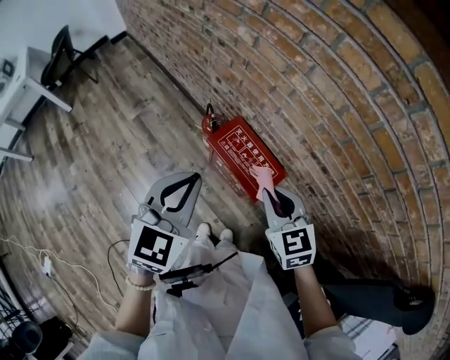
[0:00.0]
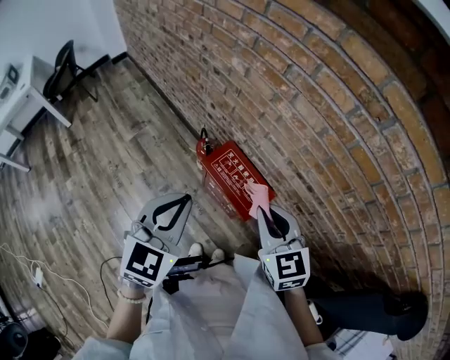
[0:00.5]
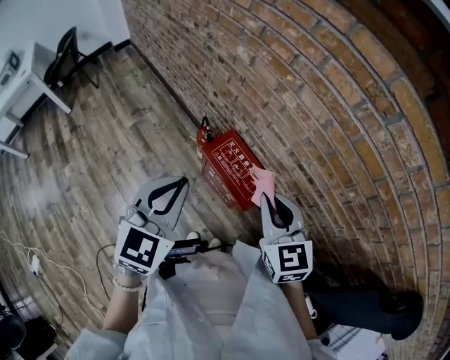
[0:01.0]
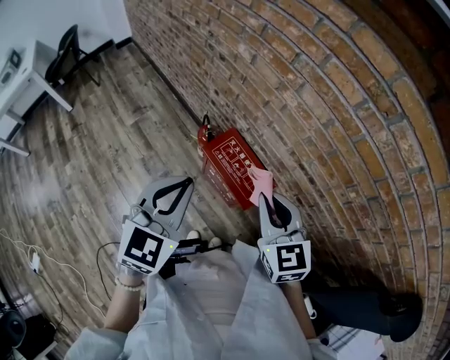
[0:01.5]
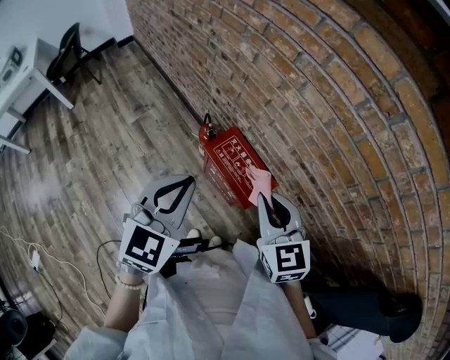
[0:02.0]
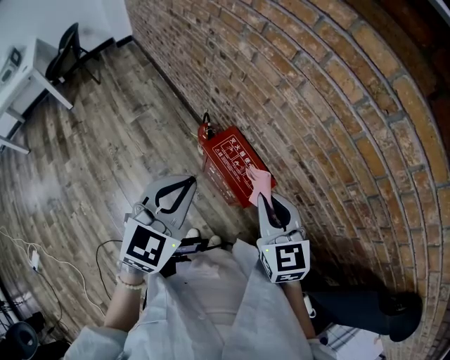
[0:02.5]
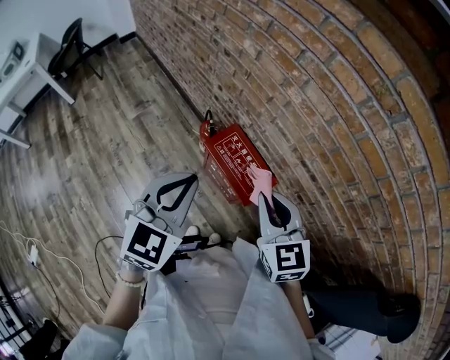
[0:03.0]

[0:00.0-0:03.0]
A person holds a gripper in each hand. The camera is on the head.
0:00.0 to 0:01.5: The right gripper shifts approximately 10 cm upward.
0:01.5 to 0:03.0: Neither gripper changes place.

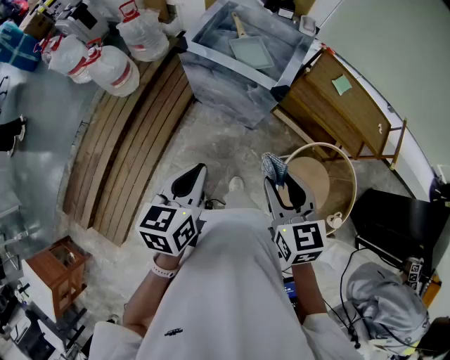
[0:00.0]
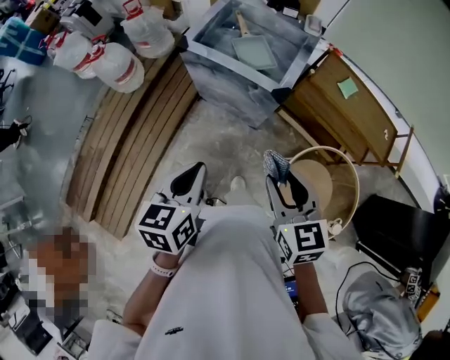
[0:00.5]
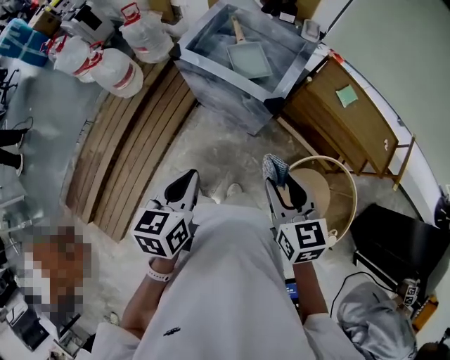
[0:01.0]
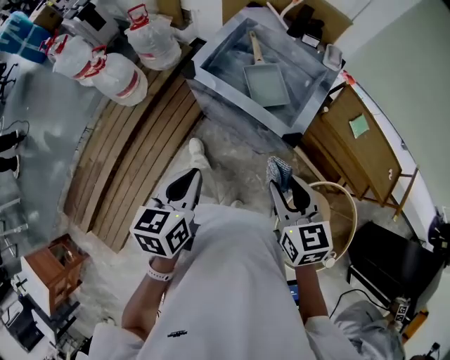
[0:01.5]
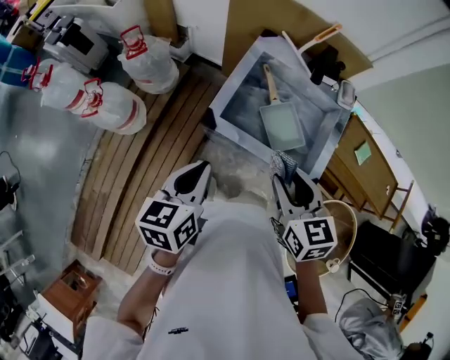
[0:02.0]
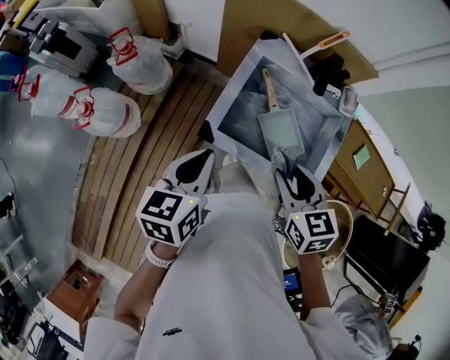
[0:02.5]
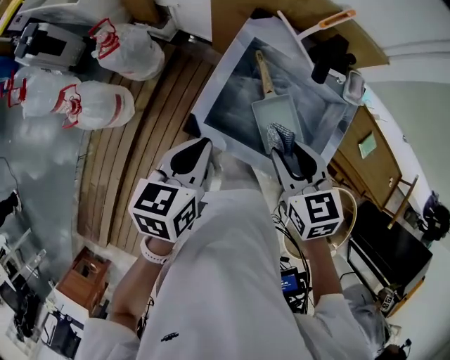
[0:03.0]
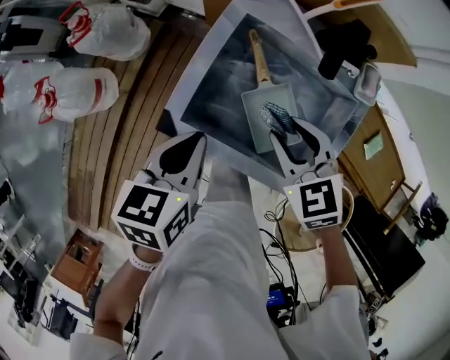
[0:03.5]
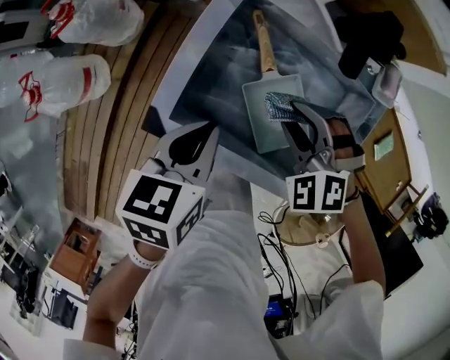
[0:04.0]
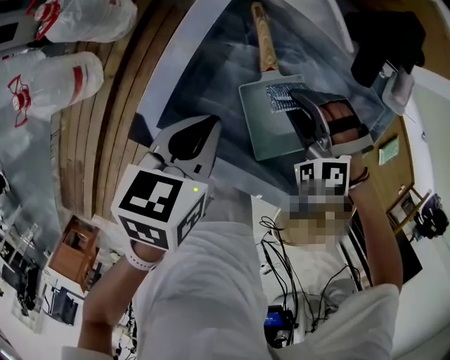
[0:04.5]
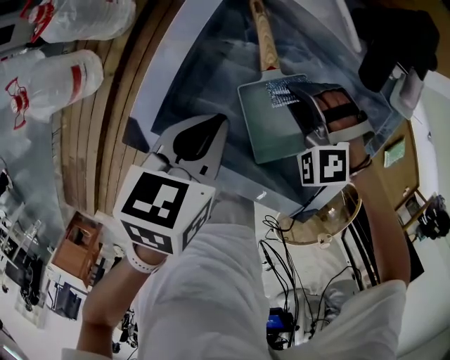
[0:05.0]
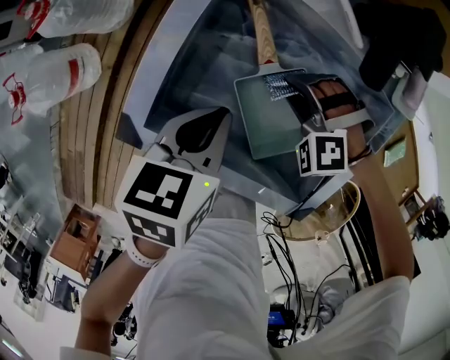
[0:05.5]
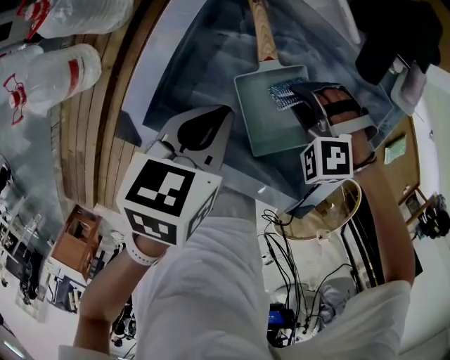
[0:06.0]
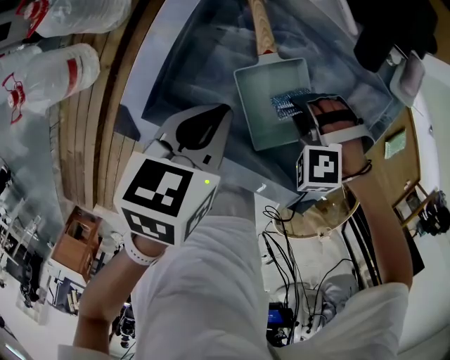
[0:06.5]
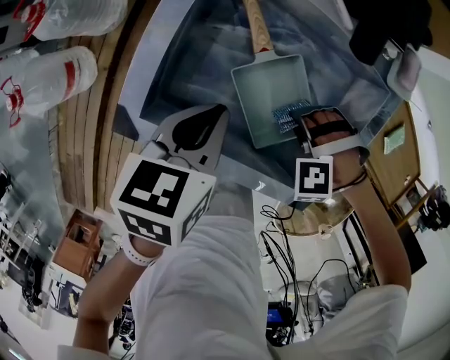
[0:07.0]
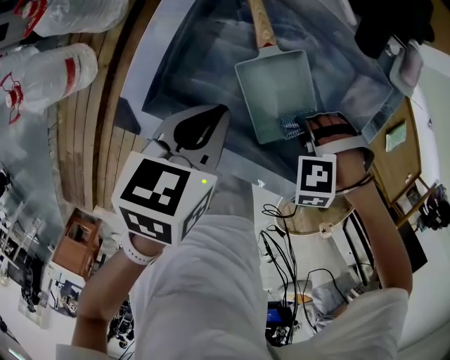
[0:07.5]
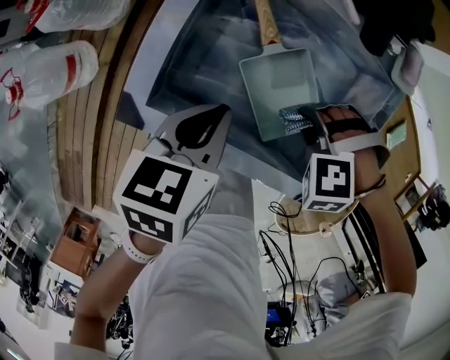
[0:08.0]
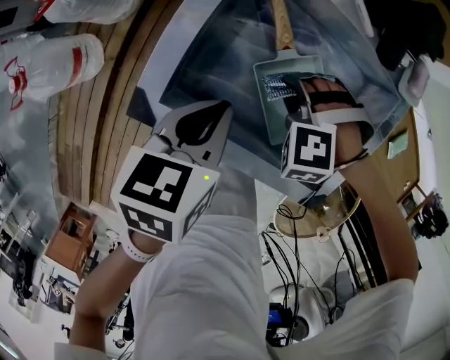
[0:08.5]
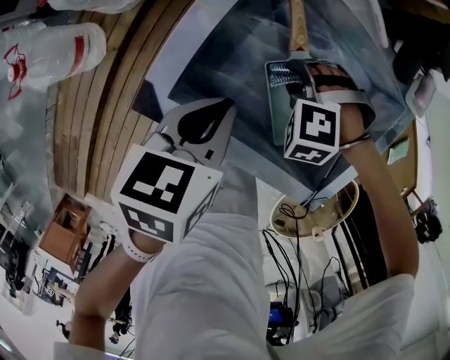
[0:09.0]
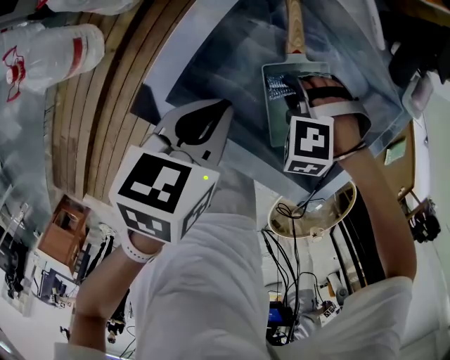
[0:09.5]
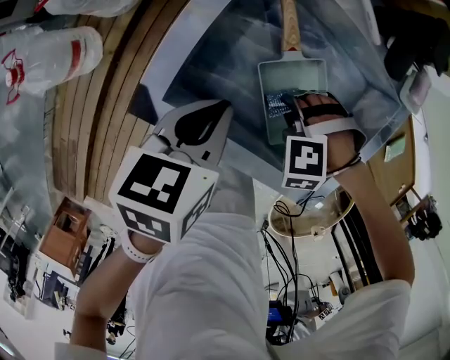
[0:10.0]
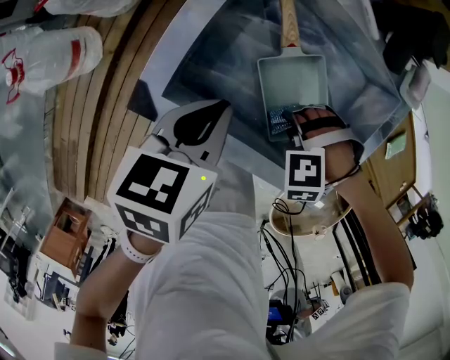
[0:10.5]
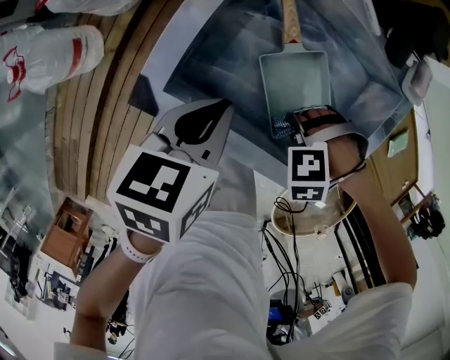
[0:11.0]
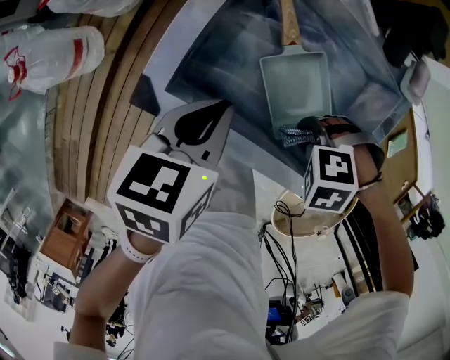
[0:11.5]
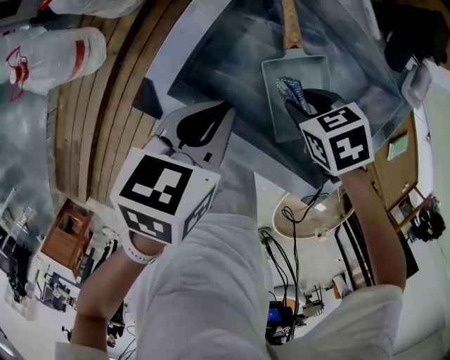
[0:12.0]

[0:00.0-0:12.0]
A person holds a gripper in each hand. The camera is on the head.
0:00.0 to 0:02.0: Both grippers move forward, some 35 cm.
0:02.0 to 0:04.0: The left gripper shifts about 25 cm forward, downward and to the right. Meanwhile the right gripper goes approximately 30 cm forward and downward, and twists about 60 degrees counterclockwise, seen from behind.
0:04.0 to 0:06.0: The left gripper travels downward by approximately 5 cm. The right gripper goes about 15 cm downward, and turns by approximately 20 degrees.
0:06.0 to 0:08.0: The right gripper ends up roughly 10 cm from where it was.
0:10.0 to 0:12.0: The right gripper rotates around the line of its fingers by roughly 70 degrees, clockwise from behind.

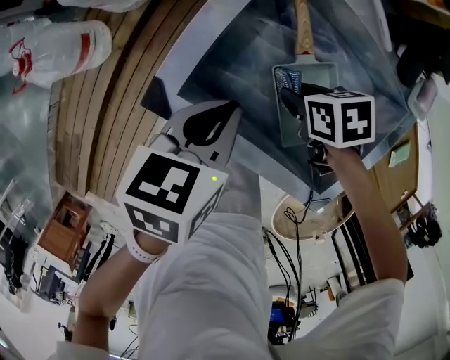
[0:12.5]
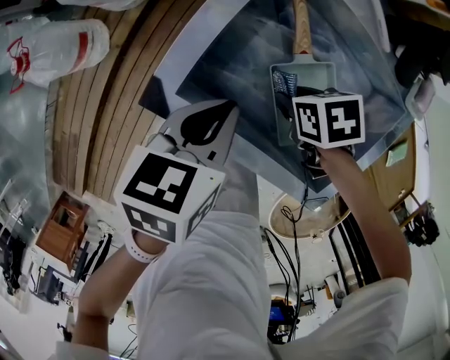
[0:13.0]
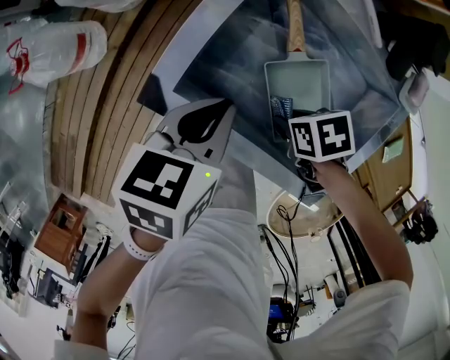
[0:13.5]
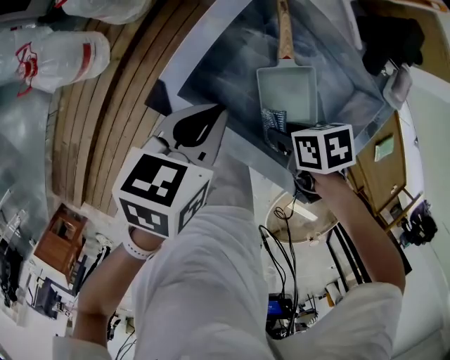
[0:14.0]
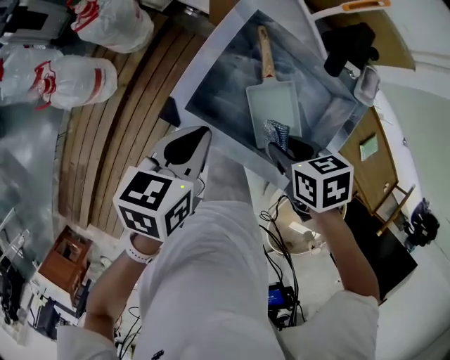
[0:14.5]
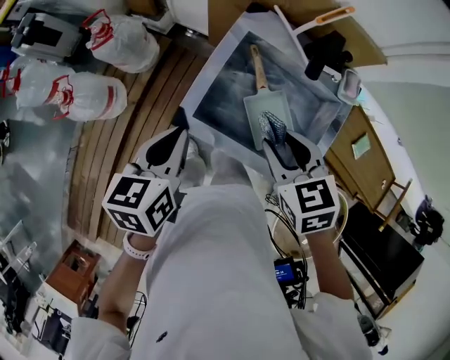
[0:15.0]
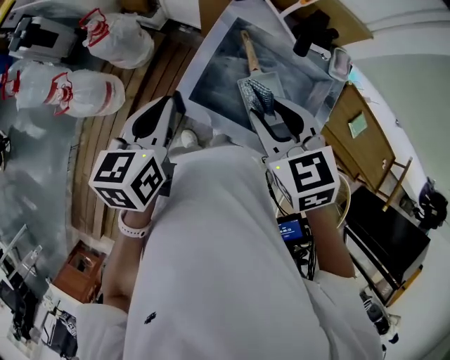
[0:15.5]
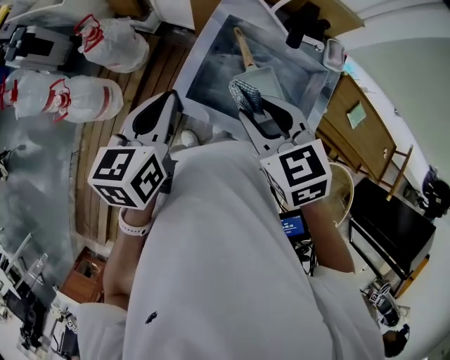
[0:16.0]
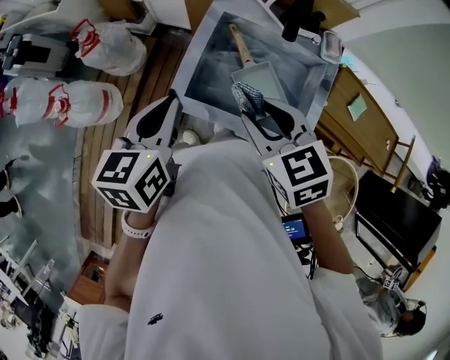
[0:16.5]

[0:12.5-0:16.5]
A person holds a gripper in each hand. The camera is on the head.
0:12.5 to 0:14.5: The right gripper travels upward by approximately 15 cm, while the left gripper moves upward, roughly 10 cm.
0:14.5 to 0:16.5: The grippers both shift upward by approximately 15 cm. The right gripper turns by about 40 degrees.

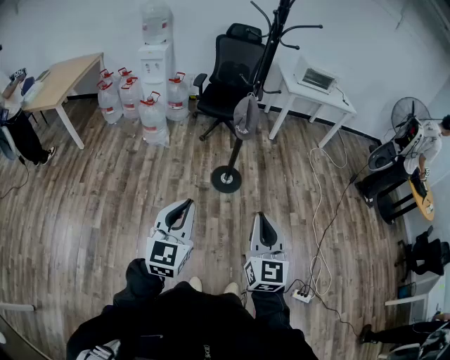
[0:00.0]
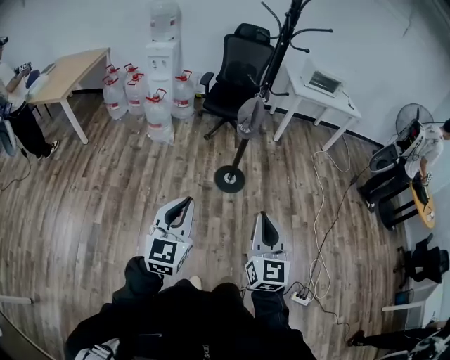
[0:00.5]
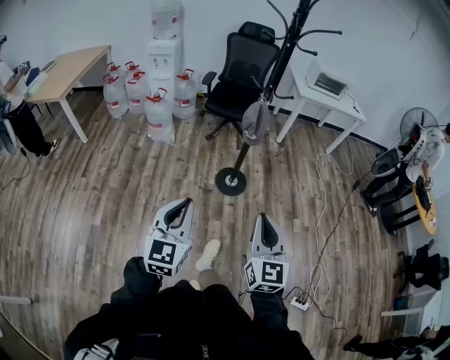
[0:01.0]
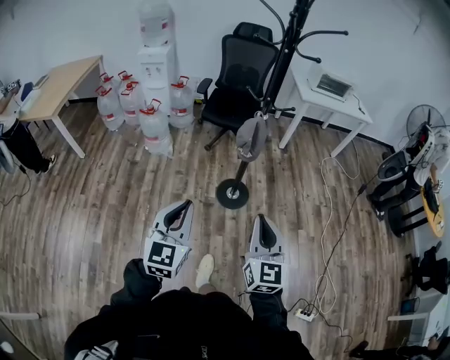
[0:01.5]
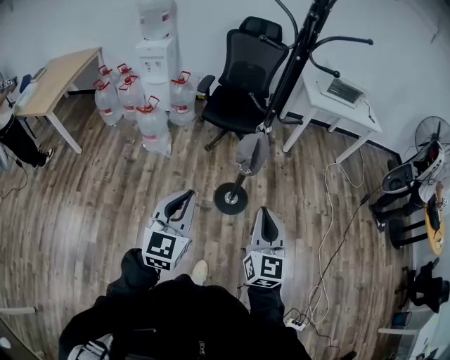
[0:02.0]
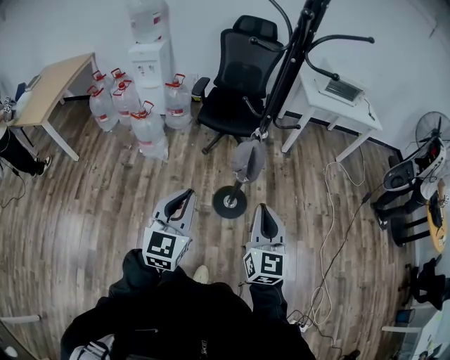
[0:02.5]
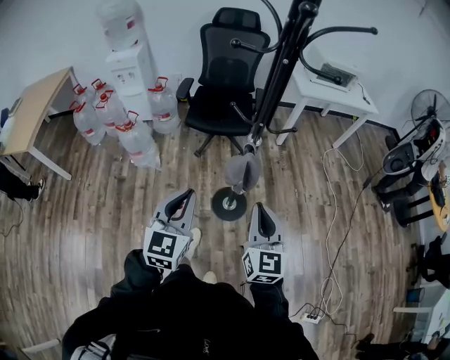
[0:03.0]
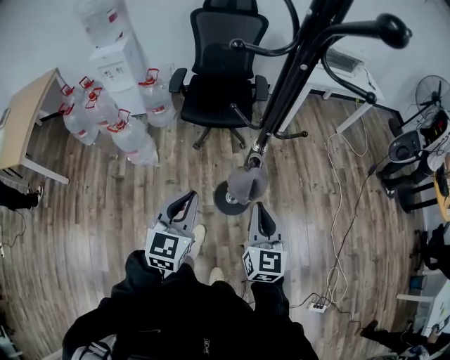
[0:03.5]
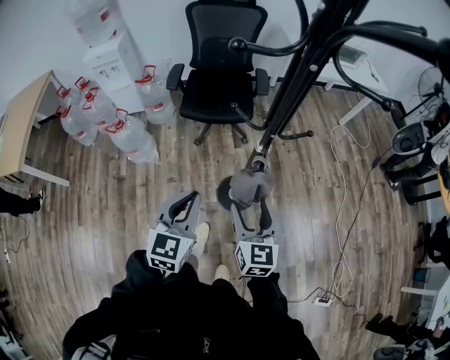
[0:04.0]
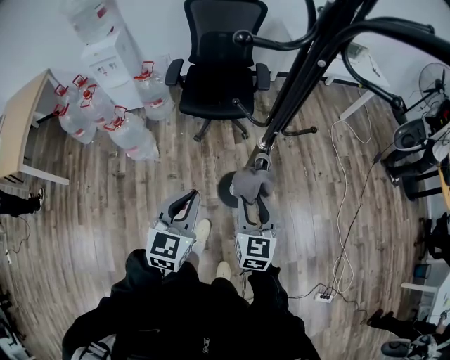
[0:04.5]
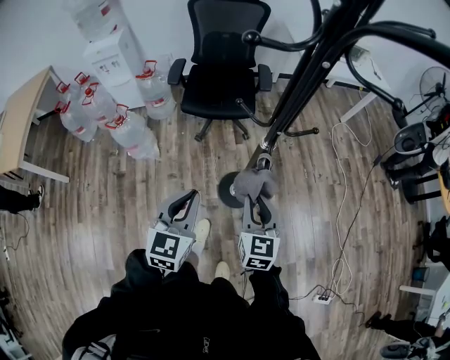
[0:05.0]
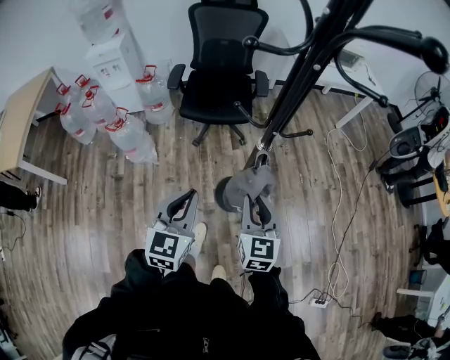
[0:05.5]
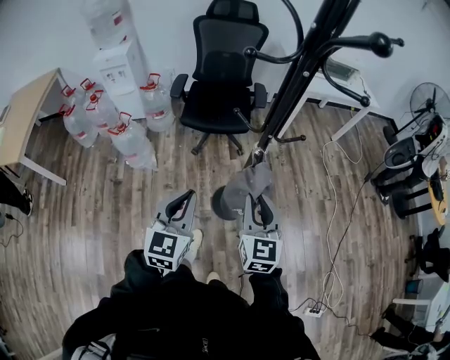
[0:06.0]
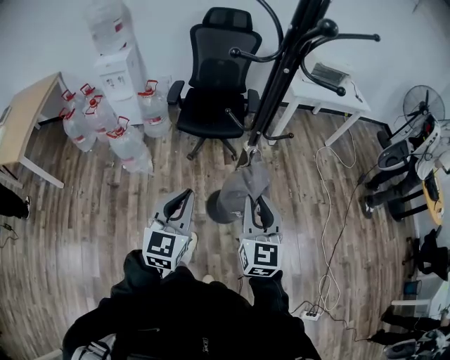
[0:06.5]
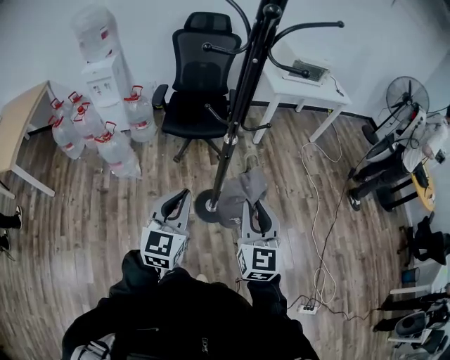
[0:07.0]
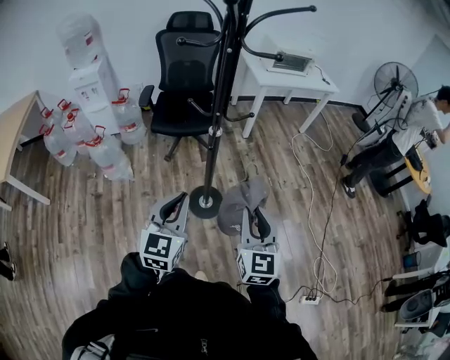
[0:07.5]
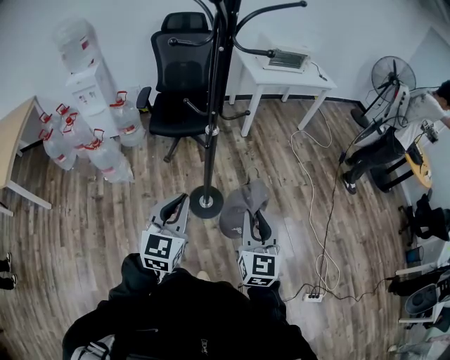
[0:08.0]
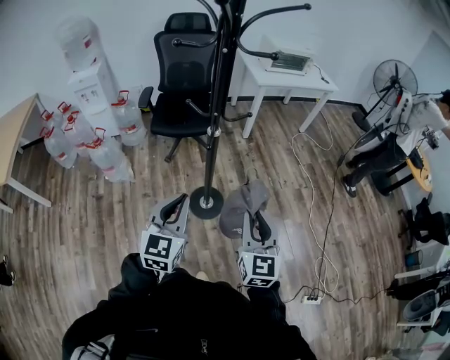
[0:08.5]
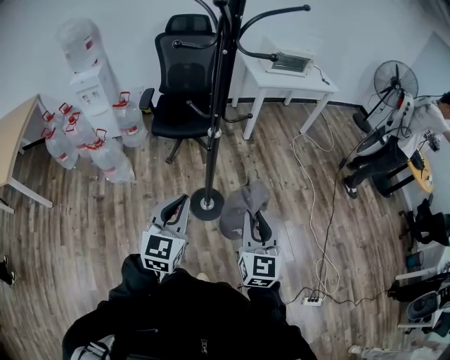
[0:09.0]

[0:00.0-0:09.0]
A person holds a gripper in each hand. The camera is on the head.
0:00.0 to 0:02.0: The grippers both shift forward by roughly 40 cm.
0:02.0 to 0:04.5: The left gripper shifts about 30 cm forward. Meanwhile the right gripper heads forward and downward, covering about 35 cm, and opens up.
0:04.5 to 0:07.0: Both grippers travel together backward, upward and to the right, roughly 20 cm.
0:07.0 to 0:09.0: The left gripper travels to the right by about 5 cm, while the right gripper shifts approximately 10 cm to the right and backward.
